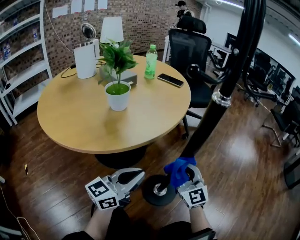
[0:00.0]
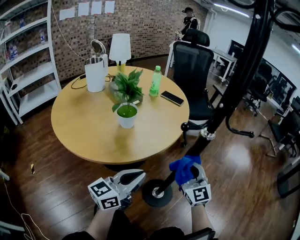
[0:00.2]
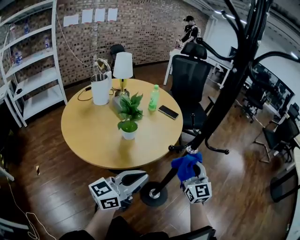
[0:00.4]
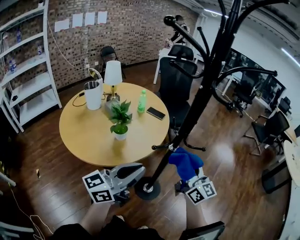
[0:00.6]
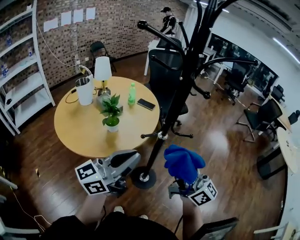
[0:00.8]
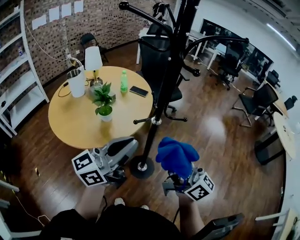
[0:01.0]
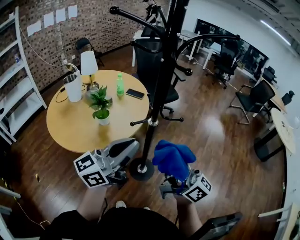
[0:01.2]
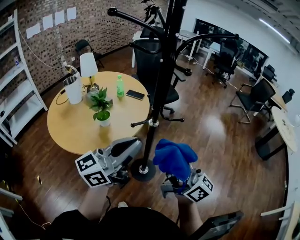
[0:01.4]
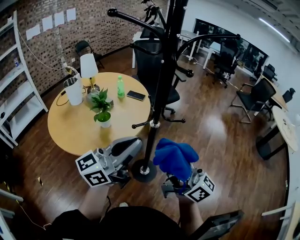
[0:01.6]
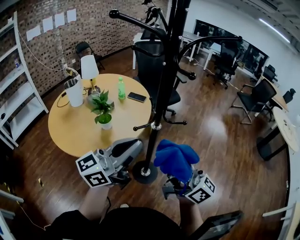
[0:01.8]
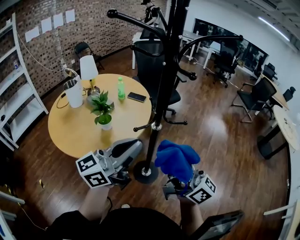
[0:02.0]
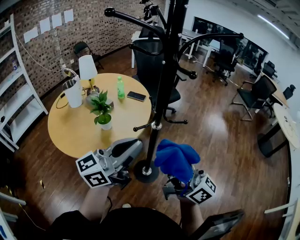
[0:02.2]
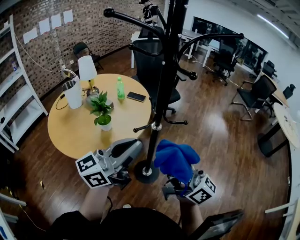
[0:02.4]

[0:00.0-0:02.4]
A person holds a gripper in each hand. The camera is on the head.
0:00.0 to 0:01.2: The left gripper is displaced upward by roughly 50 cm, and swivels roughly 20 degrees. Meanwhile the right gripper shifts some 50 cm upward and backward, and twists some 50 degrees clockwise, seen from behind.
0:01.2 to 0:02.4: The grippers make only small movements.

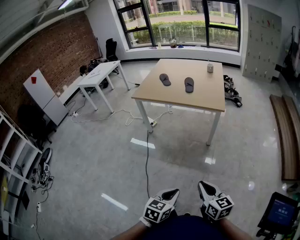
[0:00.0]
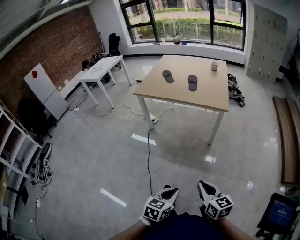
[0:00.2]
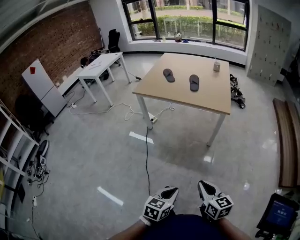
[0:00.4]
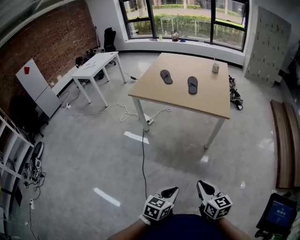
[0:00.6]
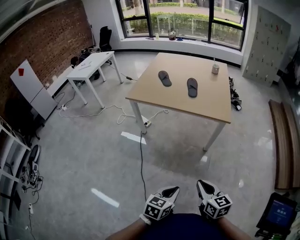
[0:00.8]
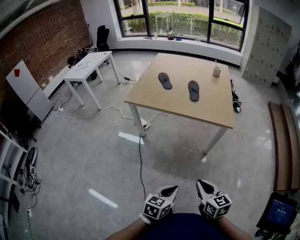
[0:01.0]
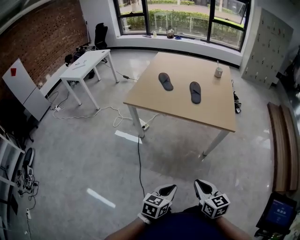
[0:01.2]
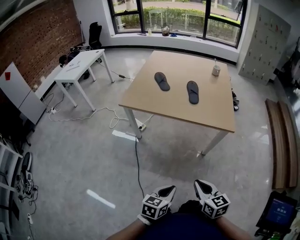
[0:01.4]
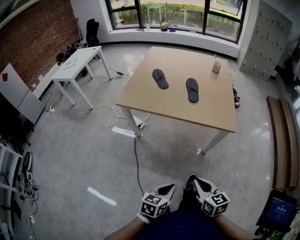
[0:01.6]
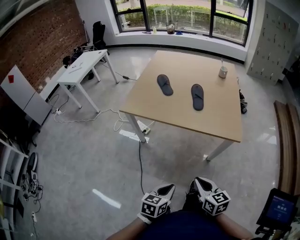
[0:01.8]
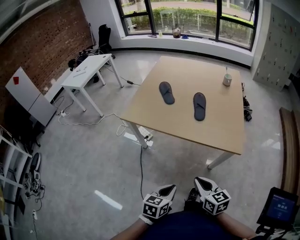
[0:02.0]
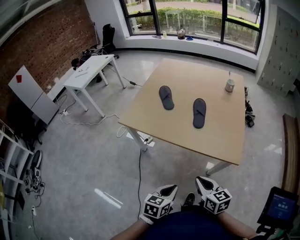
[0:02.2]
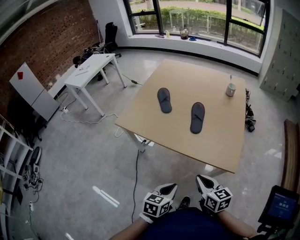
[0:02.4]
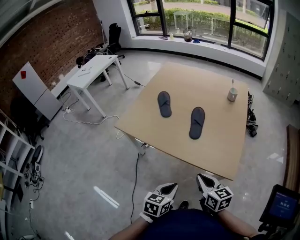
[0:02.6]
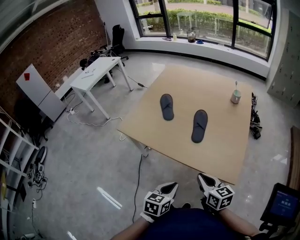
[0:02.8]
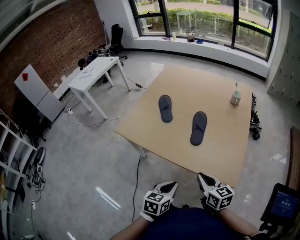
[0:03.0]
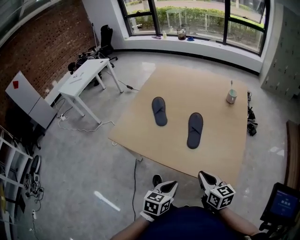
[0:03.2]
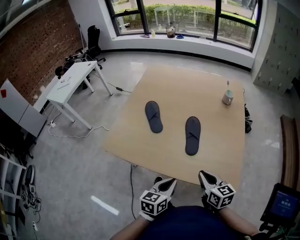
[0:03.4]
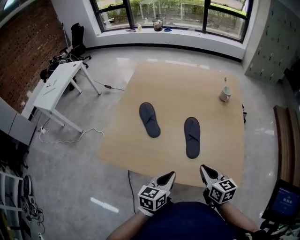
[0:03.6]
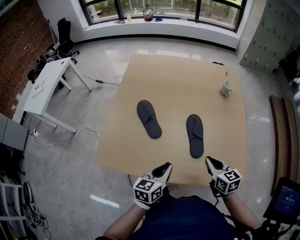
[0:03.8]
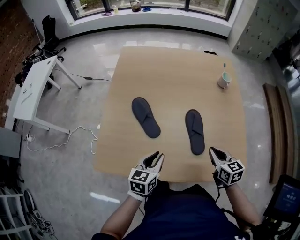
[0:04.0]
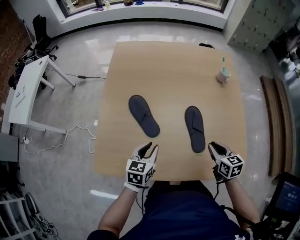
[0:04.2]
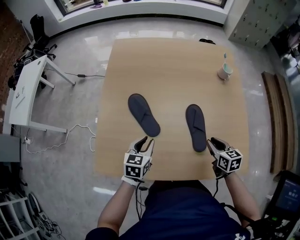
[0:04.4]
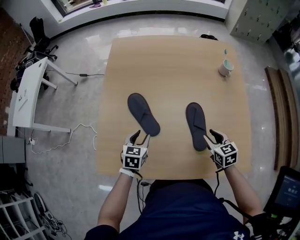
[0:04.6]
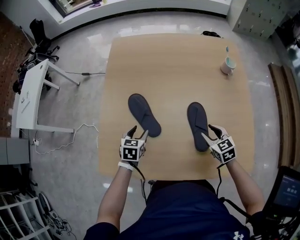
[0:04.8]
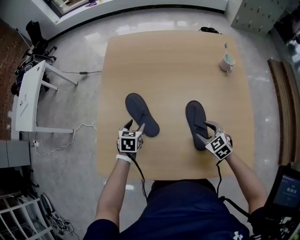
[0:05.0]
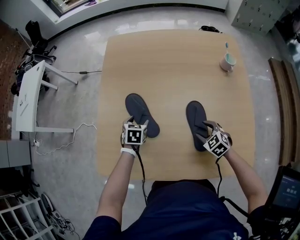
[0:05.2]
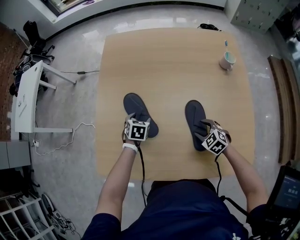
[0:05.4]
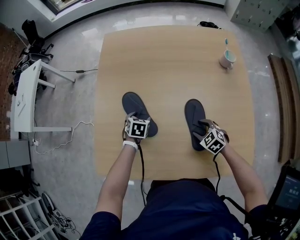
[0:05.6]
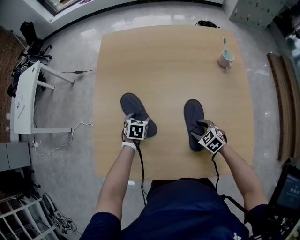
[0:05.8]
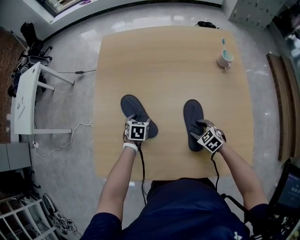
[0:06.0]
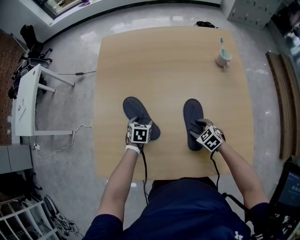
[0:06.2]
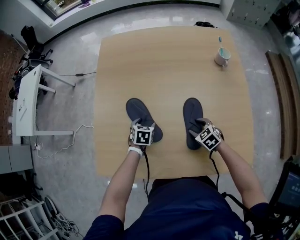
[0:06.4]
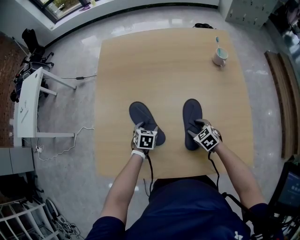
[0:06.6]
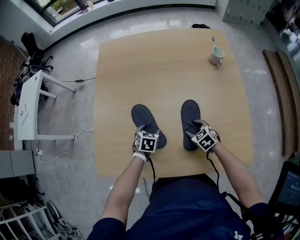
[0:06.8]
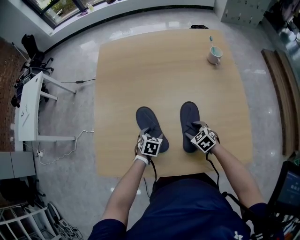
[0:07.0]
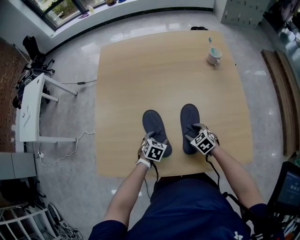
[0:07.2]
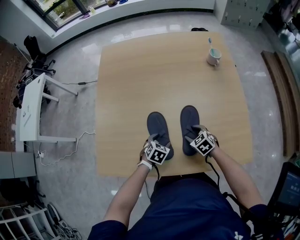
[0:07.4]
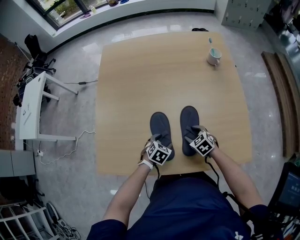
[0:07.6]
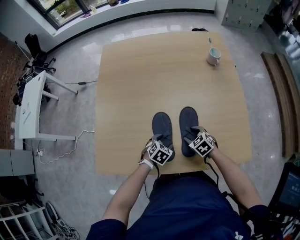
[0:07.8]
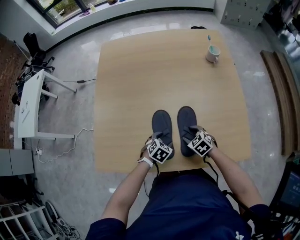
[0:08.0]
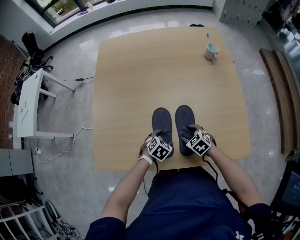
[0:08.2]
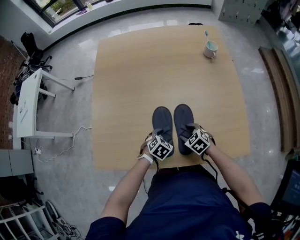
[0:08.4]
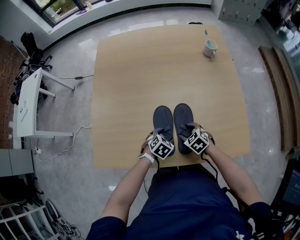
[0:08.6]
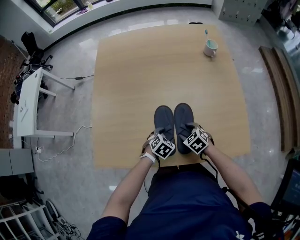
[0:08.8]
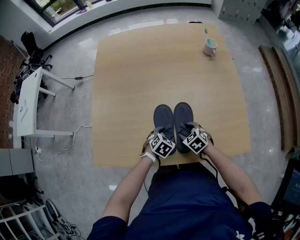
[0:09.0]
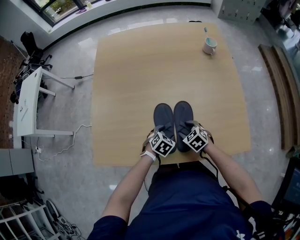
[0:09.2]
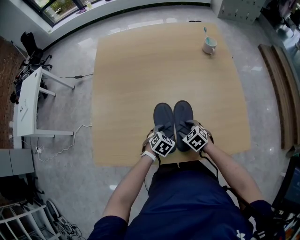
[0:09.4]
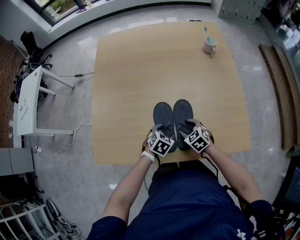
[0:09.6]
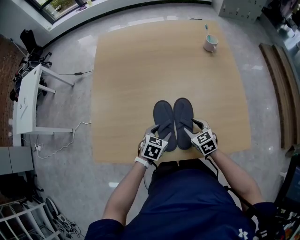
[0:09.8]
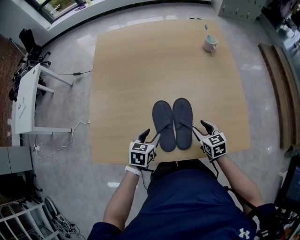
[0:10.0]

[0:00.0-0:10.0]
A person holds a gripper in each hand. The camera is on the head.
0:00.0 to 0:01.4: Both grippers travel together forward and to the left, some 30 cm.
0:01.4 to 0:02.8: Both grippers move forward, roughly 30 cm.
0:02.8 to 0:04.2: The right gripper shifts some 25 cm forward, and changes its angle by roughly 30 degrees, while the left gripper goes roughly 40 cm forward and to the left.
0:04.2 to 0:05.8: The right gripper travels downward and forward by about 15 cm, rotates roughly 40 degrees, and opens, while the left gripper heads forward and downward, covering about 20 cm, turns by roughly 30 degrees, and opens up.
0:05.8 to 0:07.2: The left gripper moves backward and to the right, roughly 15 cm.
0:07.2 to 0:08.6: The right gripper ends up approximately 5 cm from where it was. Meanwhile the left gripper heads to the right and backward, covering about 10 cm.
0:08.6 to 0:10.0: The left gripper shifts roughly 10 cm upward and to the left, and turns by roughly 30 degrees. The right gripper shifts about 10 cm to the right and upward, and rotates about 30 degrees.

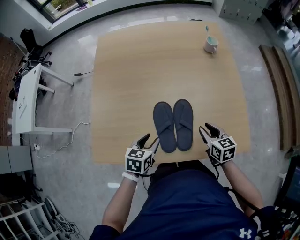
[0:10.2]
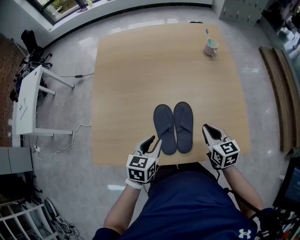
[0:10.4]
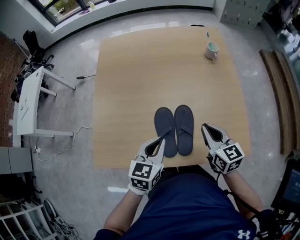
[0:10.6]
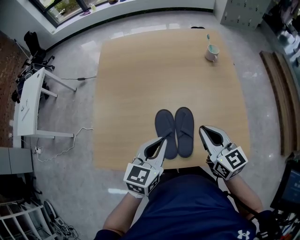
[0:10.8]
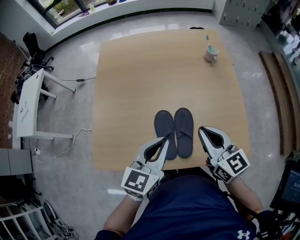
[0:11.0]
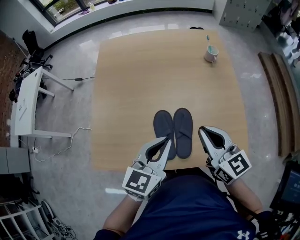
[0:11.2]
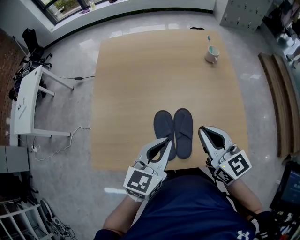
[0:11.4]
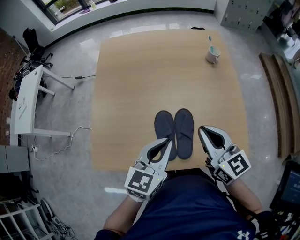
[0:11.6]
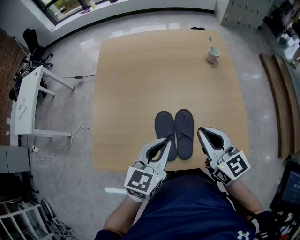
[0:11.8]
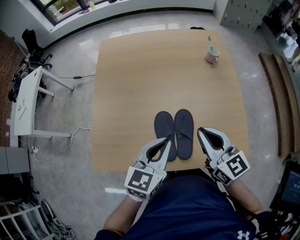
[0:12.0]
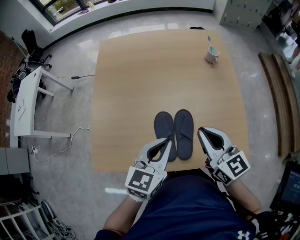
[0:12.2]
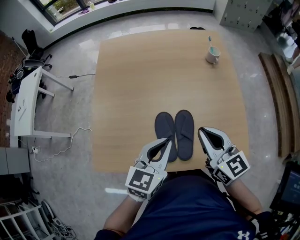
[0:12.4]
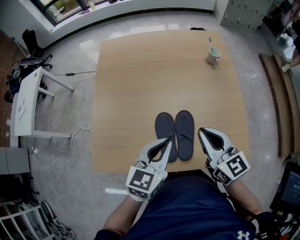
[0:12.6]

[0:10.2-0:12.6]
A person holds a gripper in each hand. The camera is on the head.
0:10.2 to 0:11.4: The grippers both shift upward by some 20 cm. The left gripper turns by roughly 30 degrees, and closes, while the right gripper turns by approximately 30 degrees, and closes.
0:11.4 to 0:12.6: The grippers stay close to where they were, moving slightly.

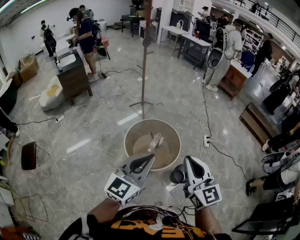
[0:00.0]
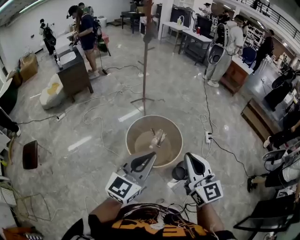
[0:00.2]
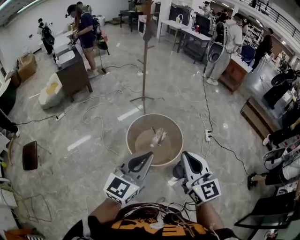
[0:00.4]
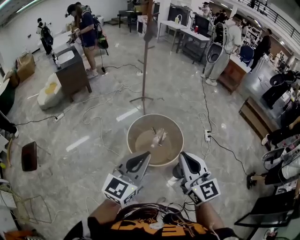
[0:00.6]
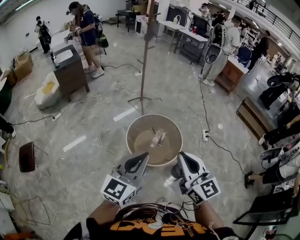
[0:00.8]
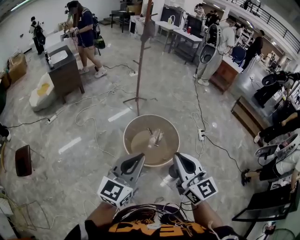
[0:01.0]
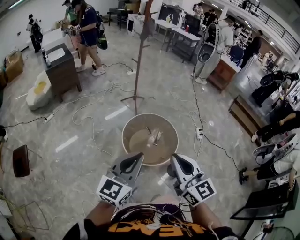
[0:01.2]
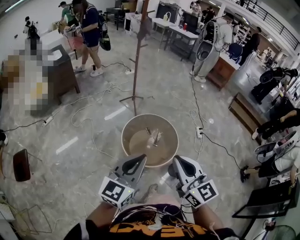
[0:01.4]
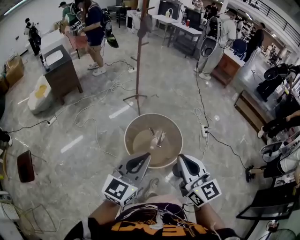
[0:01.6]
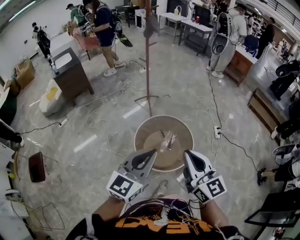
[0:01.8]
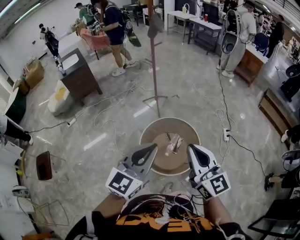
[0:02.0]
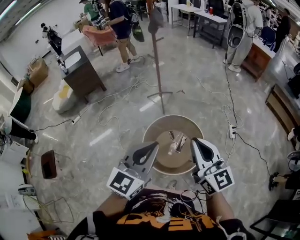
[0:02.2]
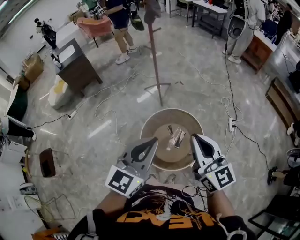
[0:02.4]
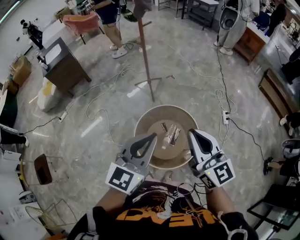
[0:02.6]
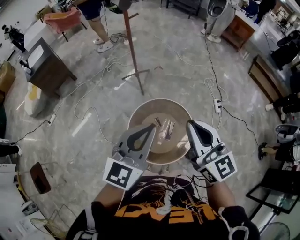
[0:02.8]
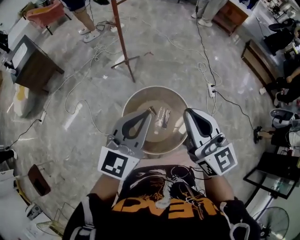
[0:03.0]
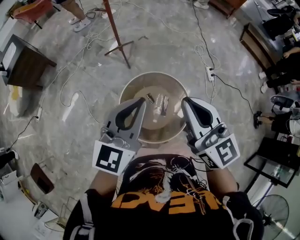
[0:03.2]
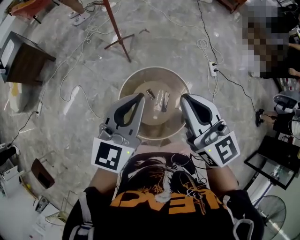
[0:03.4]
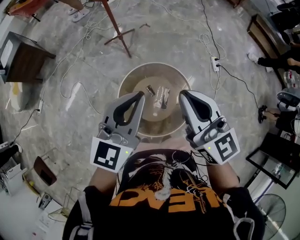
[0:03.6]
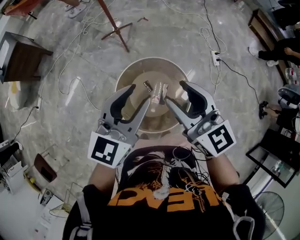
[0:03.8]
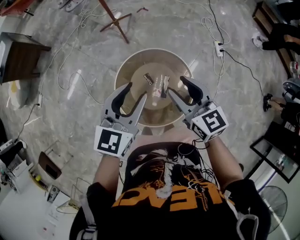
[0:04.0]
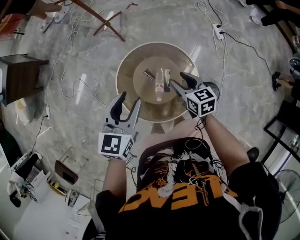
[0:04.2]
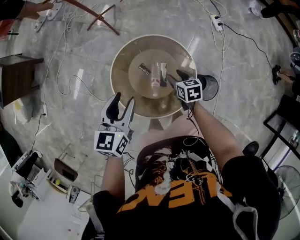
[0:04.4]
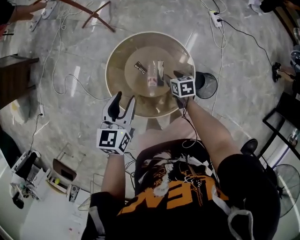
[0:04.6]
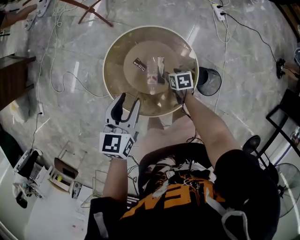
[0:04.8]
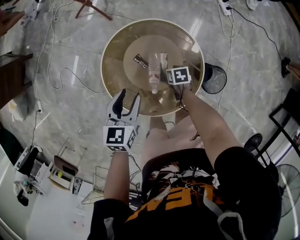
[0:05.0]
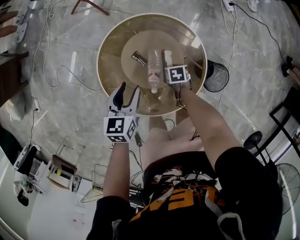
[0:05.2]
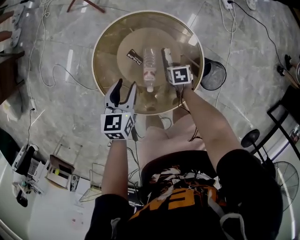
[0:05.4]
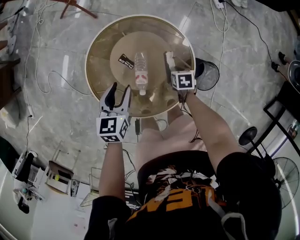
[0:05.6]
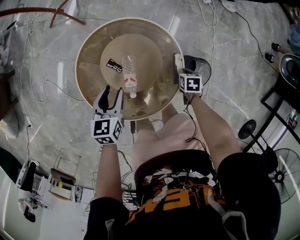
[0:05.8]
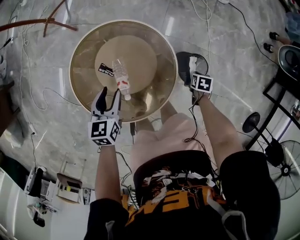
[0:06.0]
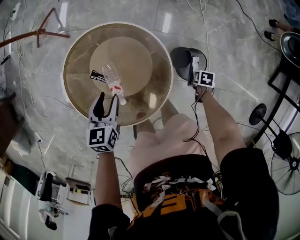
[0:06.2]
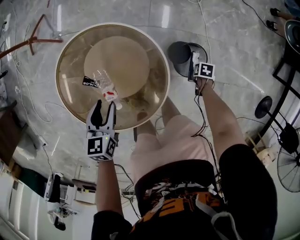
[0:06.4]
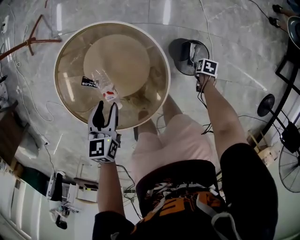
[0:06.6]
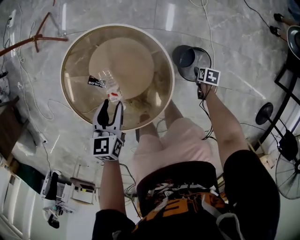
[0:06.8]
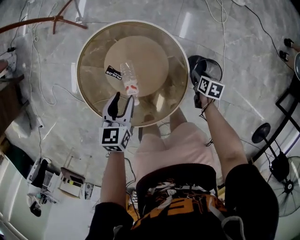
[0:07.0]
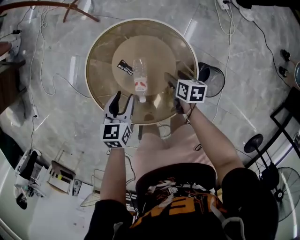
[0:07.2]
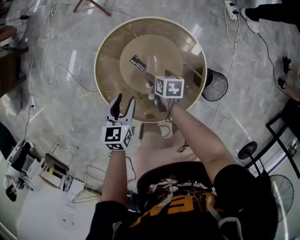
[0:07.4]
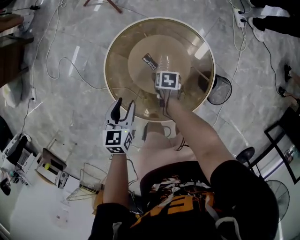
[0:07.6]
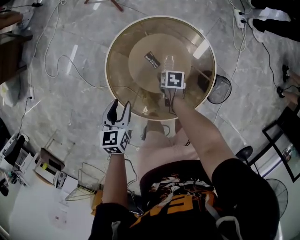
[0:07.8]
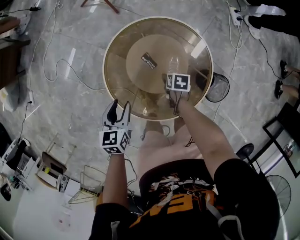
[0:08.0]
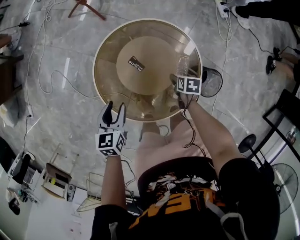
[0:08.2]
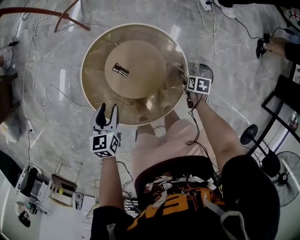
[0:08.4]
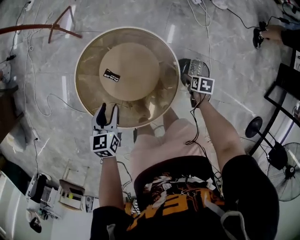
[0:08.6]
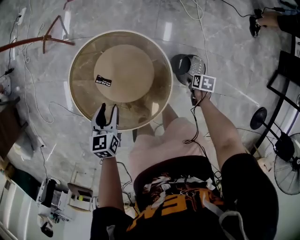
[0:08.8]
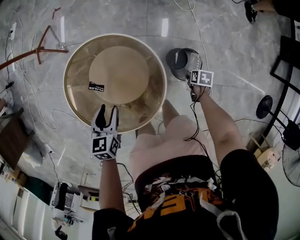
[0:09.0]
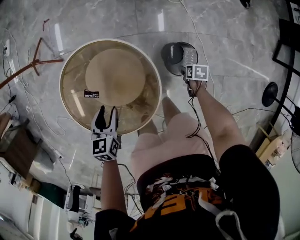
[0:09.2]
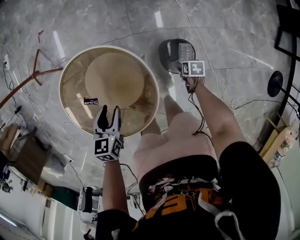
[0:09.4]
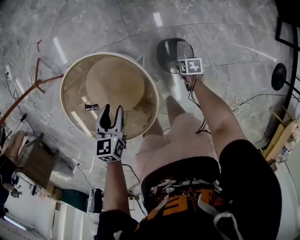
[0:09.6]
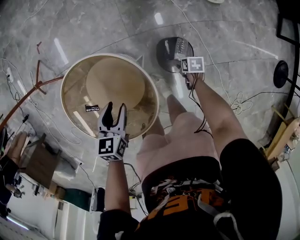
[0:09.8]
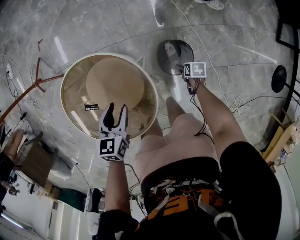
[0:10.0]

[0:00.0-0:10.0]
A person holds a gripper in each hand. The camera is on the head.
0:00.0 to 0:01.4: The grippers both shift to the left by about 15 cm.
0:01.4 to 0:02.8: Both grippers travel together forward, roughly 35 cm.
0:02.8 to 0:04.2: The left gripper is displaced downward and forward by roughly 25 cm, changes its angle by roughly 30 degrees, and opens up. Meanwhile the right gripper moves downward, roughly 40 cm, tips its fingers downward by about 40 degrees, and opens up.
0:04.2 to 0:05.8: The two grippers go some 30 cm downward. The right gripper angles its fingers downward, by approximately 40 degrees, and closes.
0:05.8 to 0:07.2: The right gripper travels downward and back again, approximately 15 cm each way, turns by roughly 30 degrees, and opens its fingers.
0:07.2 to 0:08.6: The right gripper shifts by approximately 20 cm, and swivels about 20 degrees.
0:08.6 to 0:10.0: The right gripper changes place by some 20 cm, and rotates some 20 degrees. Meanwhile the left gripper changes place by some 25 cm, and changes its angle by some 30 degrees.
